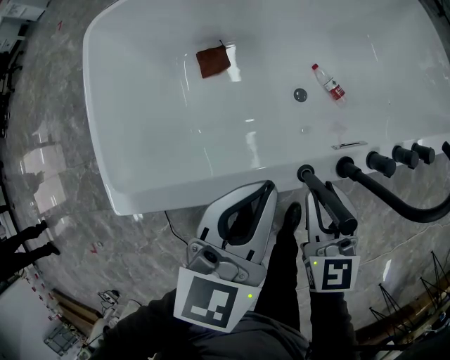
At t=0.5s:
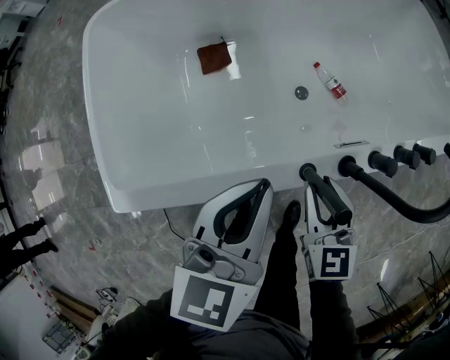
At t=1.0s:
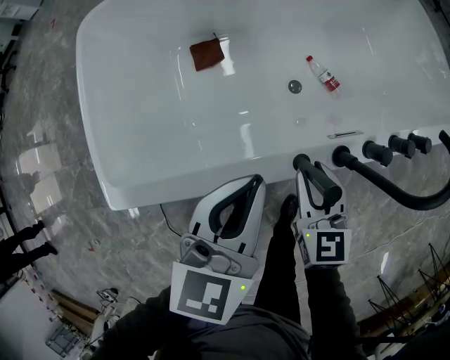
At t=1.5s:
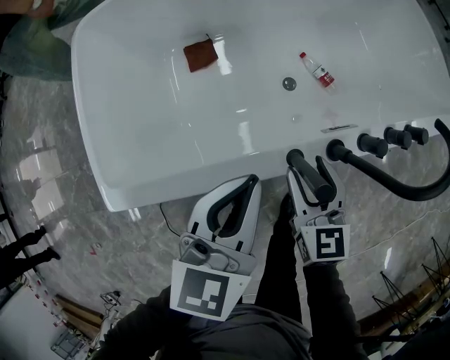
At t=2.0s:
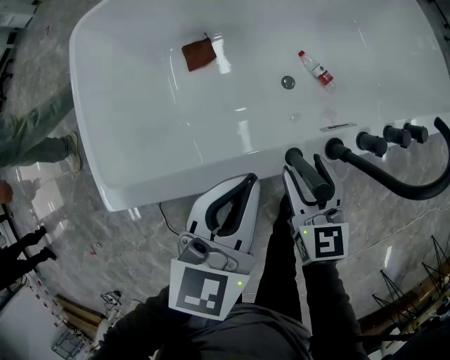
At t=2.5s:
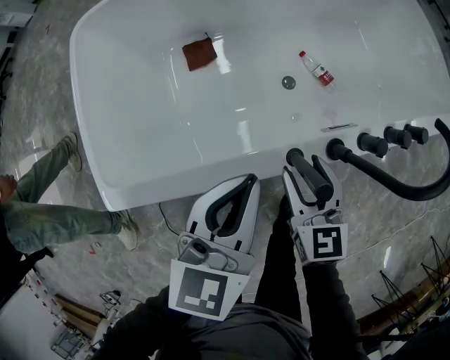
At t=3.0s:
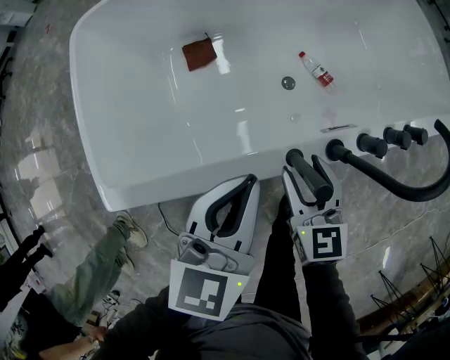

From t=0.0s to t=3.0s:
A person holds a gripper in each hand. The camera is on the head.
From t=0.0s to t=1.5s: The right gripper opens up.
From t=1.5s to t=3.0s: The two grippers keep their place.

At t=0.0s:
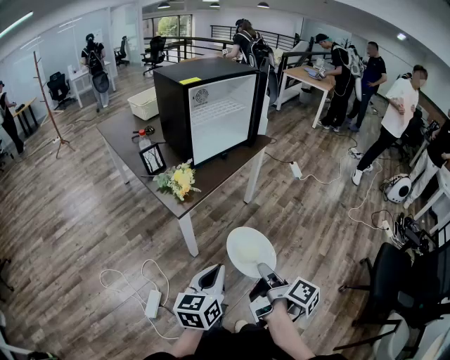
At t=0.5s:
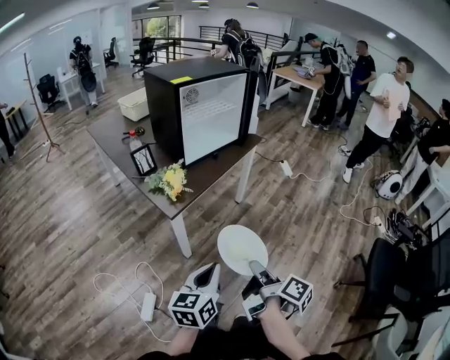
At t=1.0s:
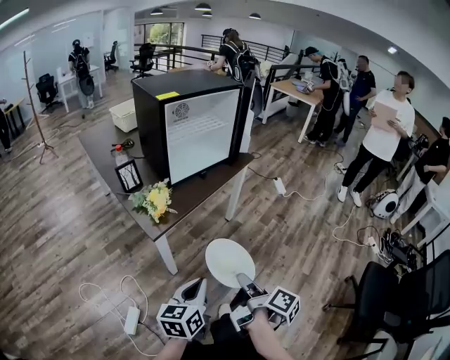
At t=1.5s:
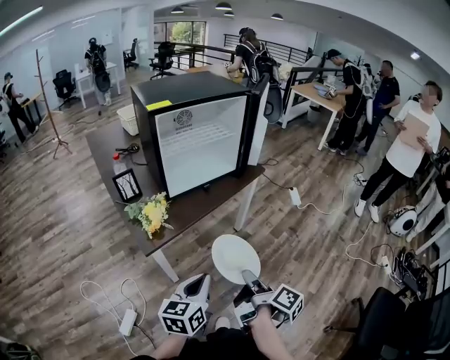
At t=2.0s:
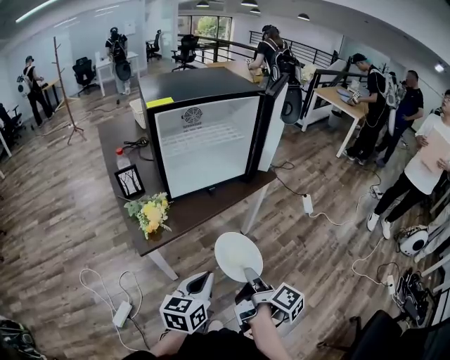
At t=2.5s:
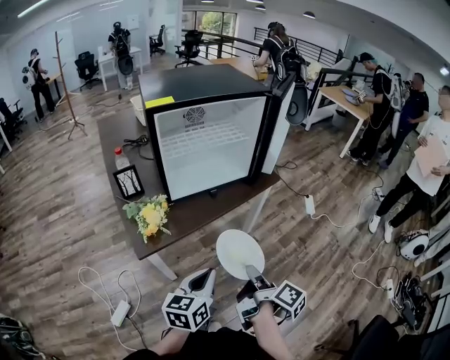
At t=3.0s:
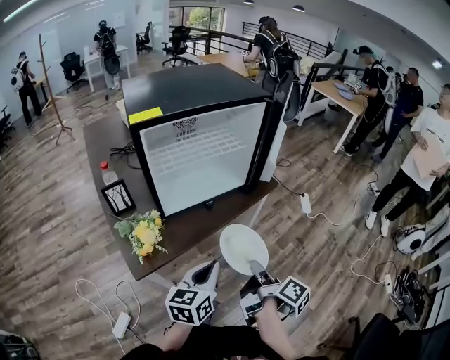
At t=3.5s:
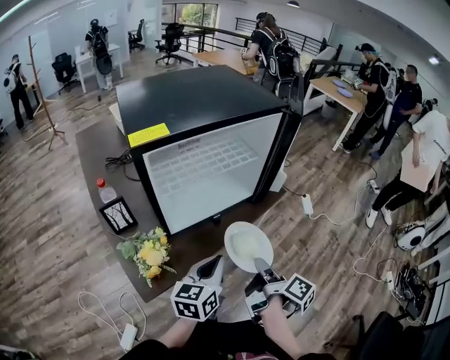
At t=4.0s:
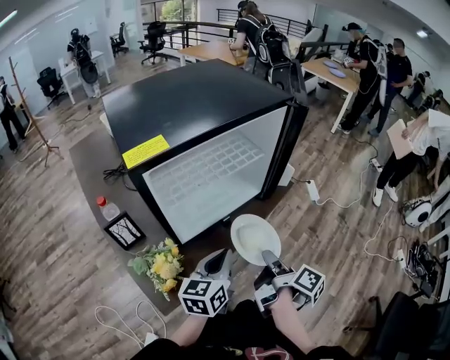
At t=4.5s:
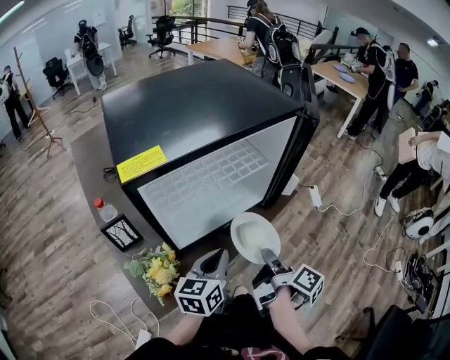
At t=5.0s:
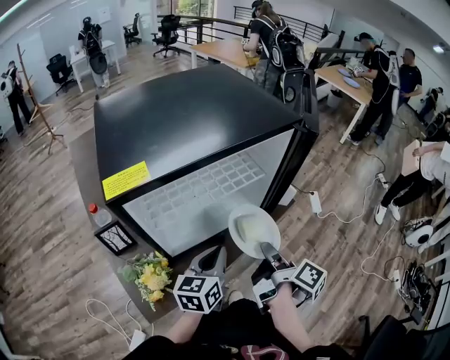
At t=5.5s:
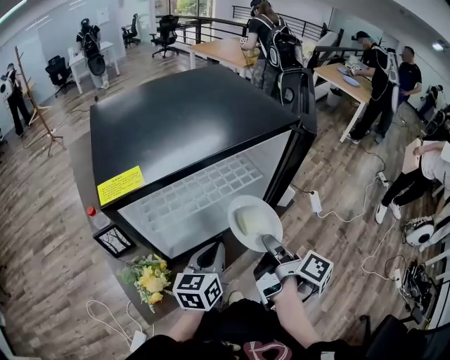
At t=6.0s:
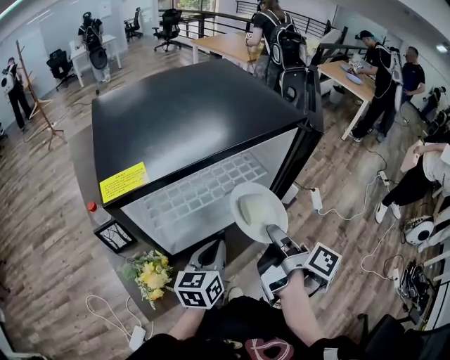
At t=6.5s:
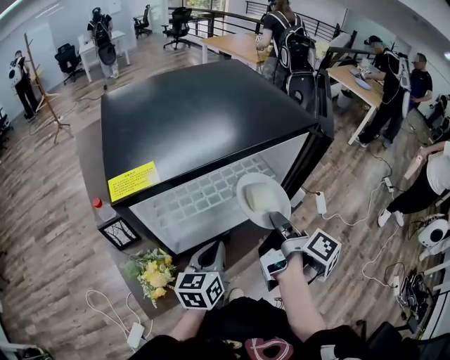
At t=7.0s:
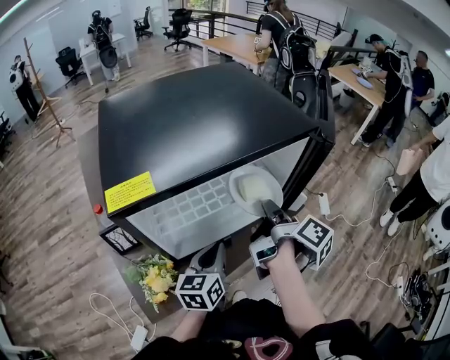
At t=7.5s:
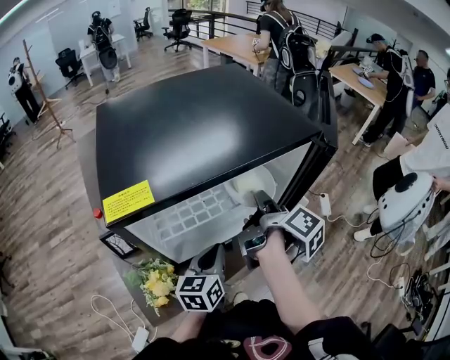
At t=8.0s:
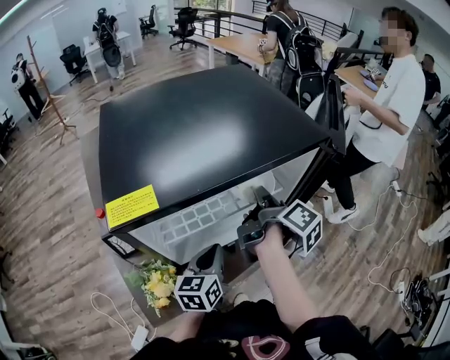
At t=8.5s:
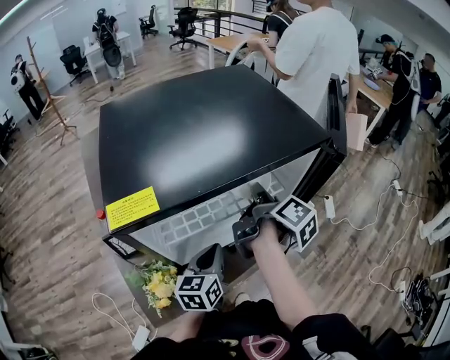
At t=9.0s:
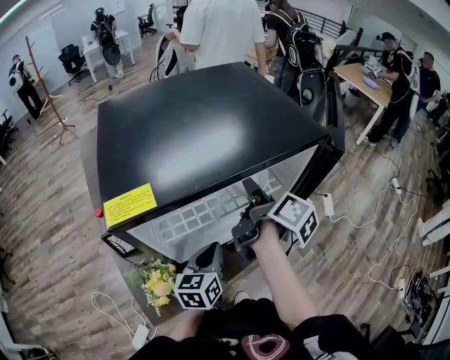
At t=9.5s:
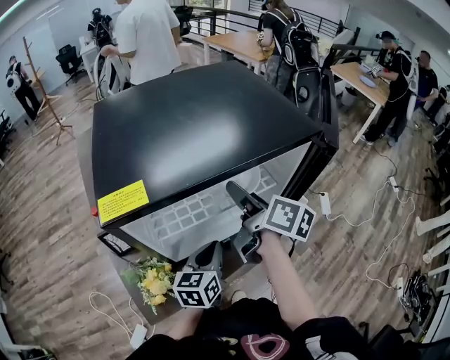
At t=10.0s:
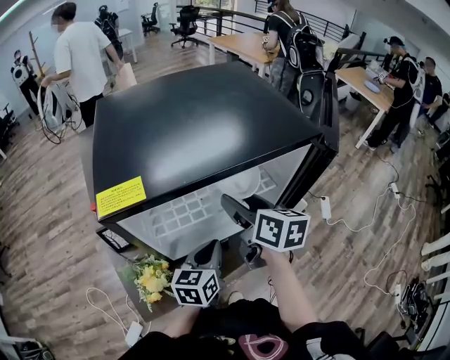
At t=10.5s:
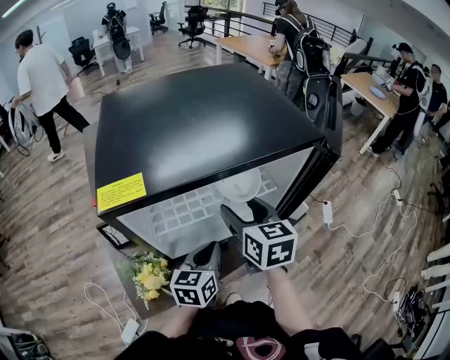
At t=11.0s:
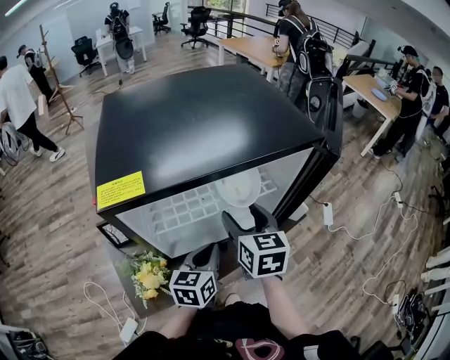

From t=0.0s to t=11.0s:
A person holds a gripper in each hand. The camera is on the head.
From t=0.0s to t=2.0s: The right gripper travels forward by some 30 cm, while the left gripper is displaced forward and to the right by approximately 25 cm.
From t=2.0s to t=3.5s: The two grippers go about 20 cm forward.
From t=3.5s to t=5.5s: The left gripper is displaced forward by some 15 cm. The right gripper shifts approximately 15 cm forward and upward.
From t=5.5s to t=7.5s: The right gripper moves forward, to the left and upward, roughly 15 cm.
From t=7.5s to t=9.0s: The grippers make only small movements.
From t=9.0s to t=11.0s: The right gripper shifts about 5 cm backward, twists some 60 degrees counterclockwise, seen from behind, and opens its fingers.

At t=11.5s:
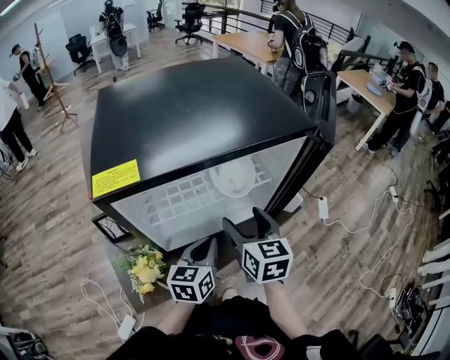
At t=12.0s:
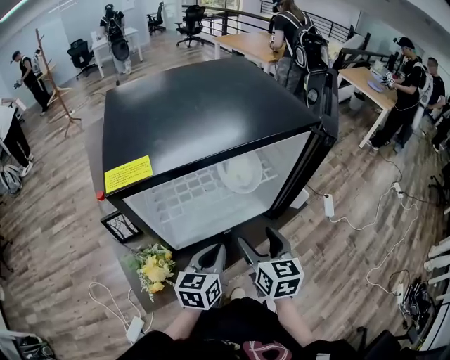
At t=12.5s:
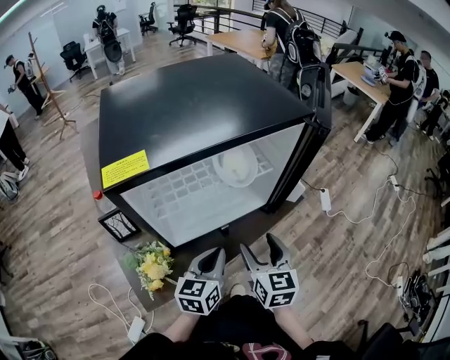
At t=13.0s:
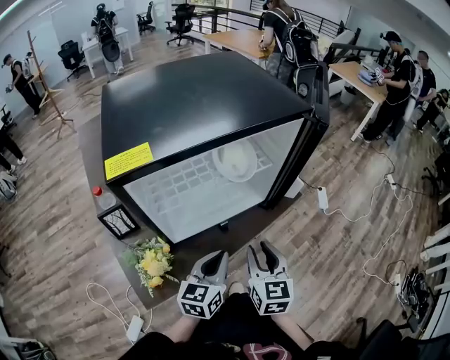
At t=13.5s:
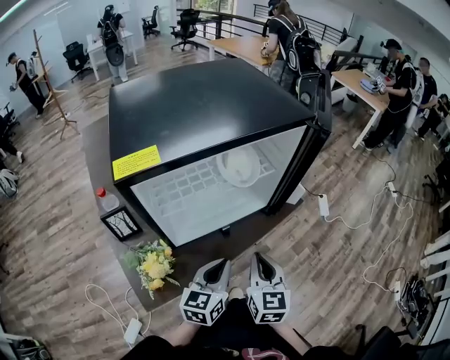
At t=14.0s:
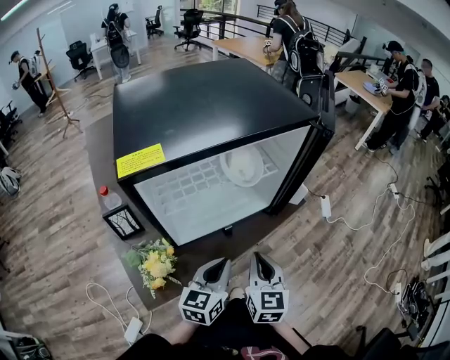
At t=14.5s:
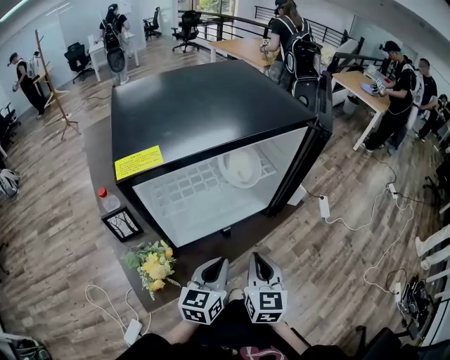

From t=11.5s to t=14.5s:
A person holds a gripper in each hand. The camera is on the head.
From t=11.5s to t=13.0s: The right gripper travels backward and downward by about 15 cm, and closes its fingers. Meanwhile the left gripper heads backward, covering some 10 cm.
From t=13.0s to t=14.5s: The right gripper closes.

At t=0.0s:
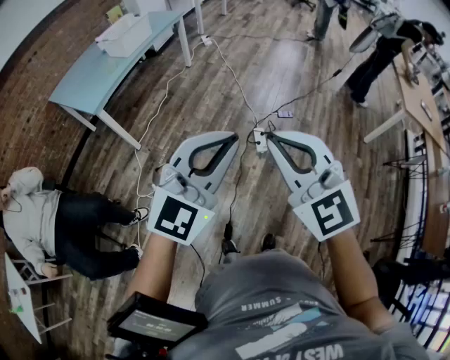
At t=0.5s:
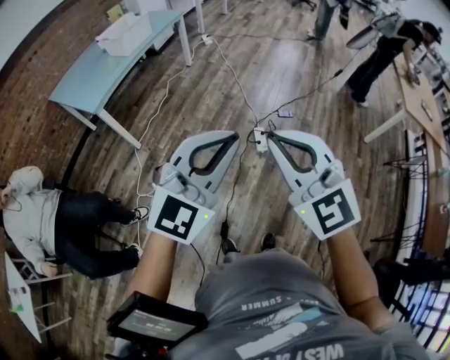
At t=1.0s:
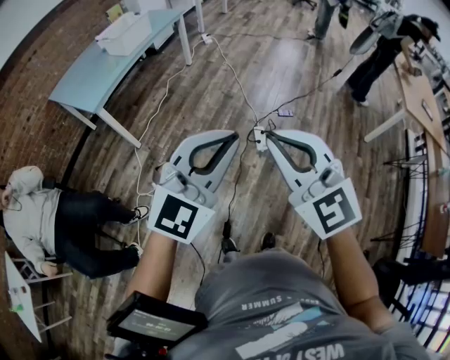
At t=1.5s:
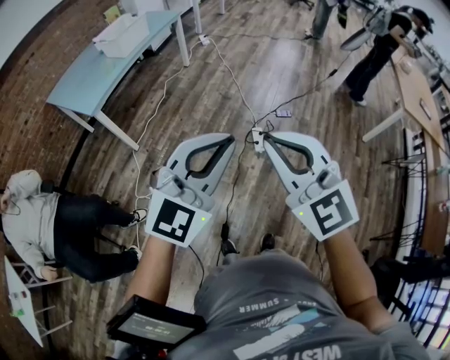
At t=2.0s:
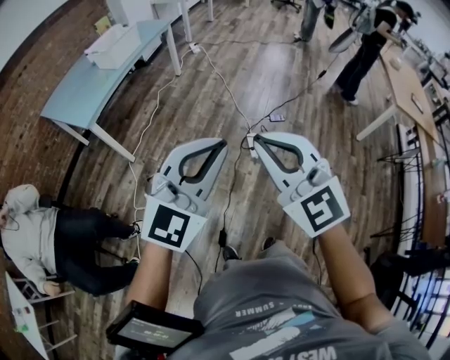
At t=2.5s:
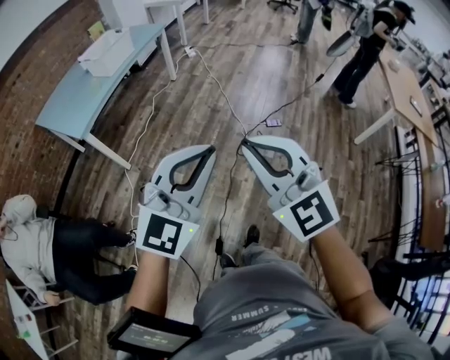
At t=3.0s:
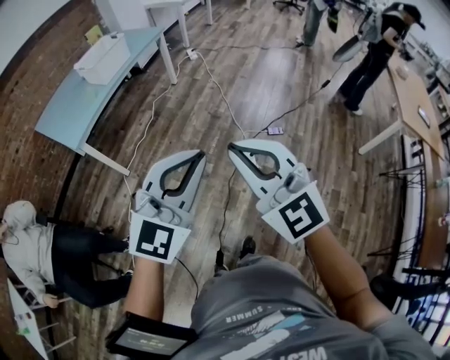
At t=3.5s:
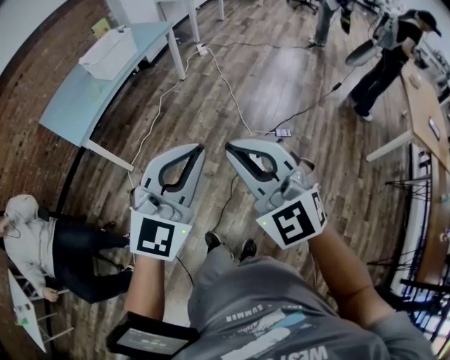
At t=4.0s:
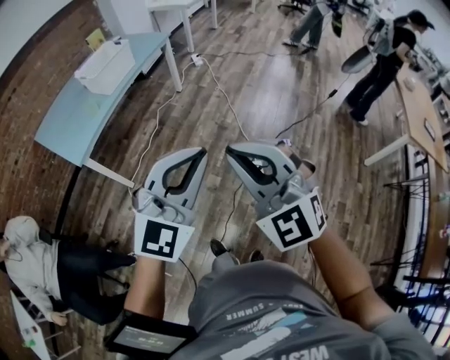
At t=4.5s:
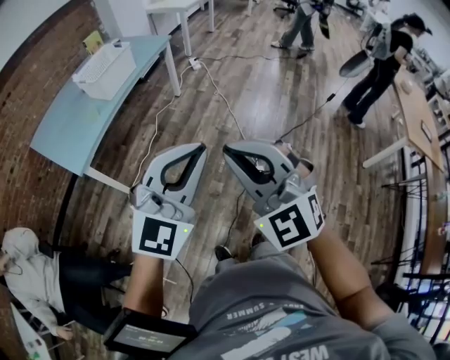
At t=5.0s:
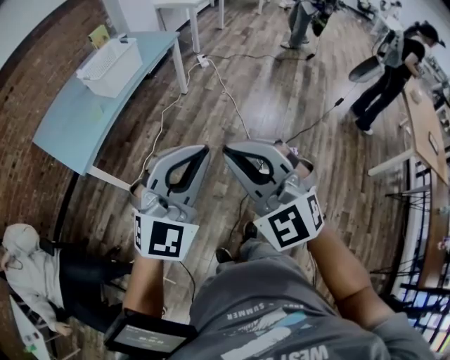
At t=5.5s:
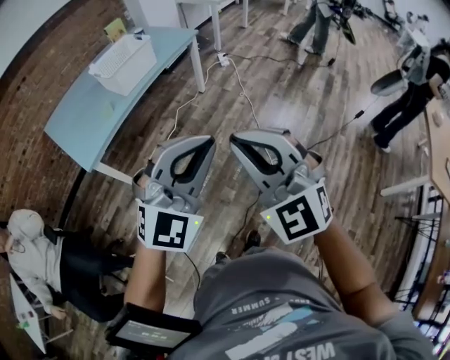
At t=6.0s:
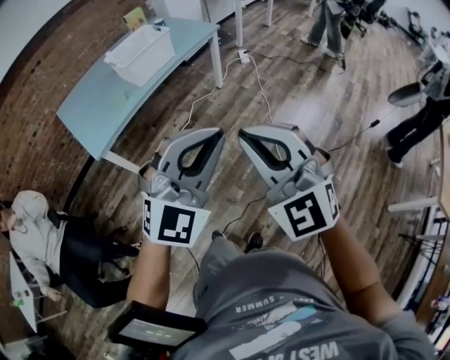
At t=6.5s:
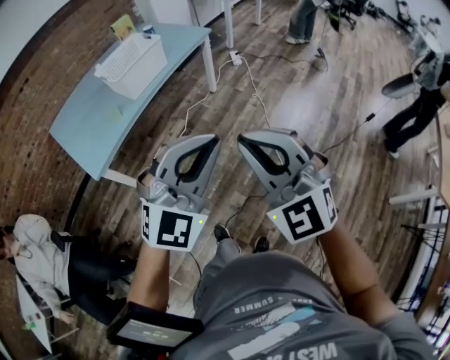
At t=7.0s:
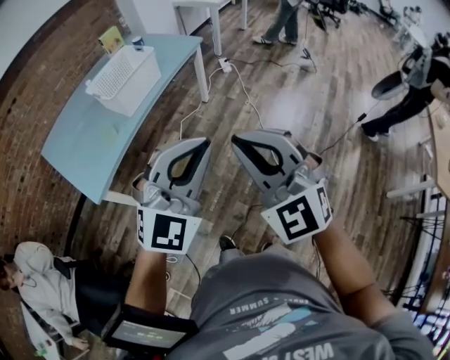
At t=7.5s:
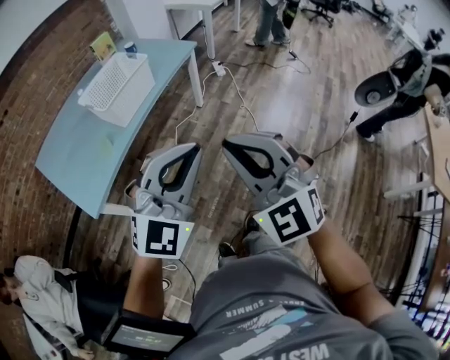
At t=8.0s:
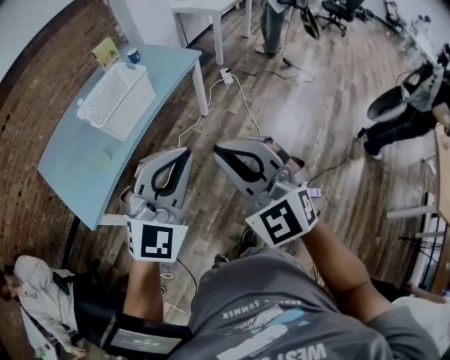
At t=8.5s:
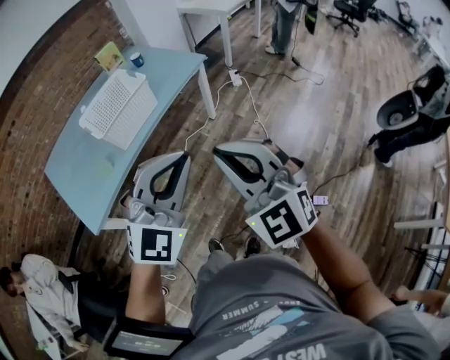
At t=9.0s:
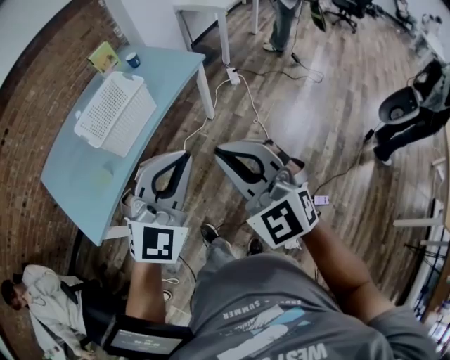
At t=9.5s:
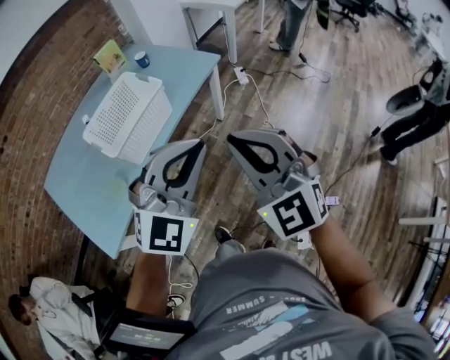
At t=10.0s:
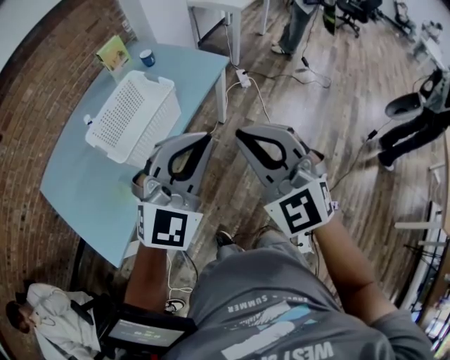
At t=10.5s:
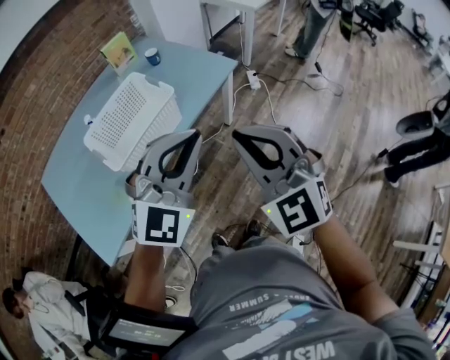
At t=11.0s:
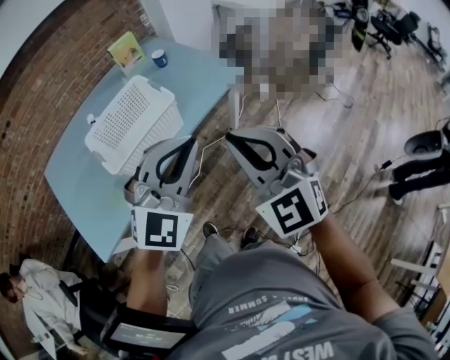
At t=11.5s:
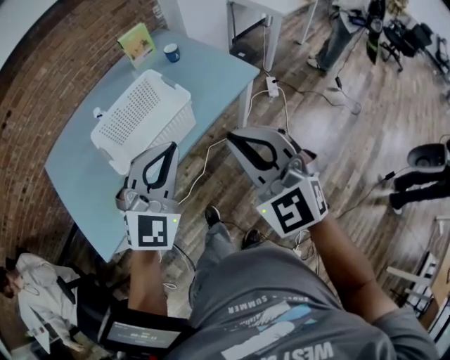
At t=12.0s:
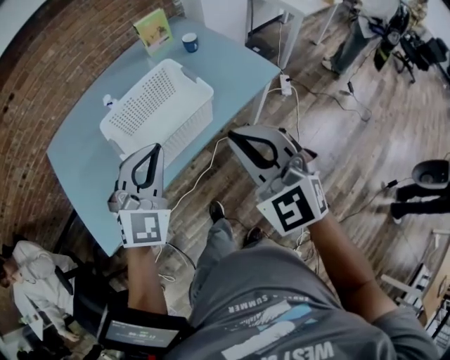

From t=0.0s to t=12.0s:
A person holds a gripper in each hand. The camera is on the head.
From t=0.0s to t=2.0s: Both grippers stay about where they are.
From t=2.0s to t=4.0s: The grippers both shift forward by some 25 cm.
From t=4.0s to t=6.0s: The grippers both shift forward by about 20 cm.
From t=6.0s to t=8.0s: Both grippers travel together forward, about 25 cm.
From t=8.0s to t=10.0s: The grippers both shift forward and to the left by roughly 25 cm.
From t=10.0s to t=12.0s: The right gripper moves some 20 cm. Meanwhile the left gripper changes place by approximately 25 cm, and swivels approximately 40 degrees.
